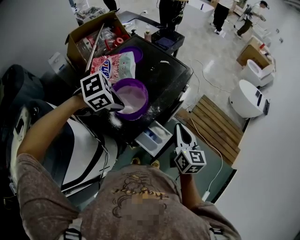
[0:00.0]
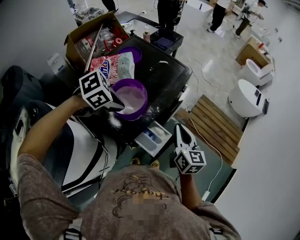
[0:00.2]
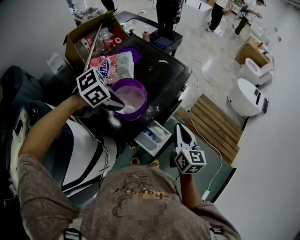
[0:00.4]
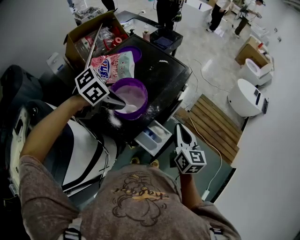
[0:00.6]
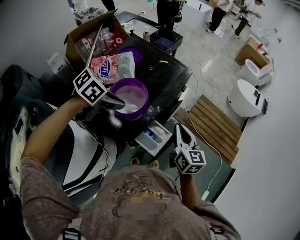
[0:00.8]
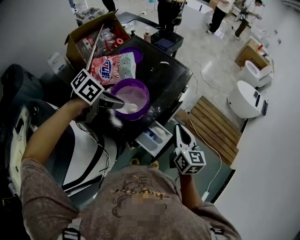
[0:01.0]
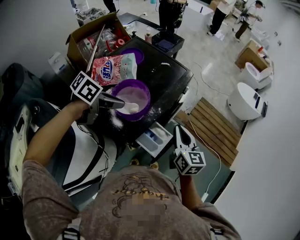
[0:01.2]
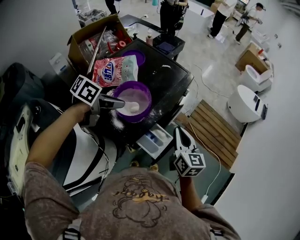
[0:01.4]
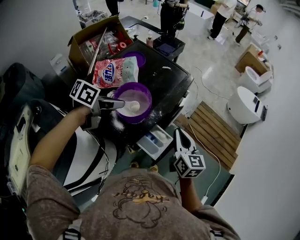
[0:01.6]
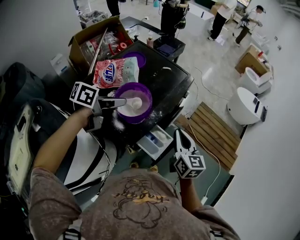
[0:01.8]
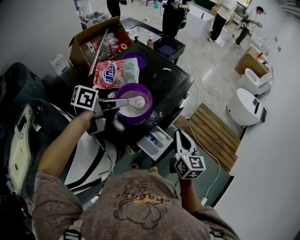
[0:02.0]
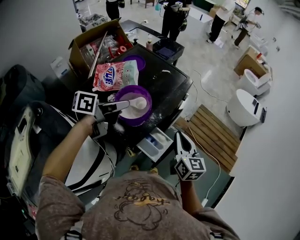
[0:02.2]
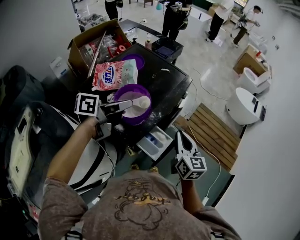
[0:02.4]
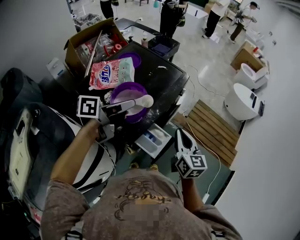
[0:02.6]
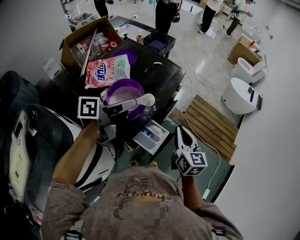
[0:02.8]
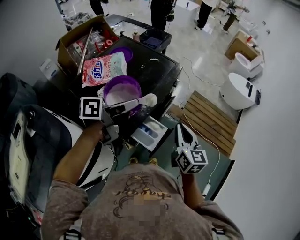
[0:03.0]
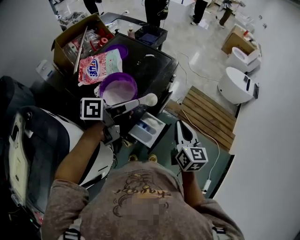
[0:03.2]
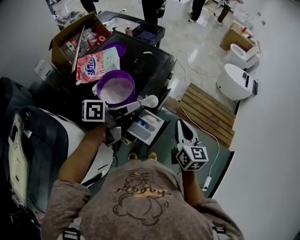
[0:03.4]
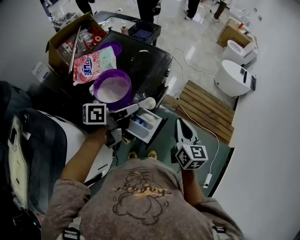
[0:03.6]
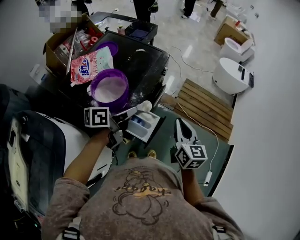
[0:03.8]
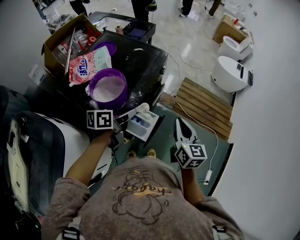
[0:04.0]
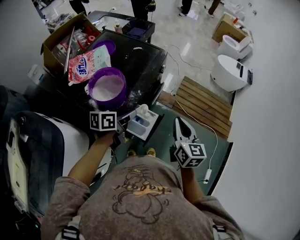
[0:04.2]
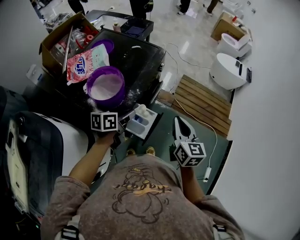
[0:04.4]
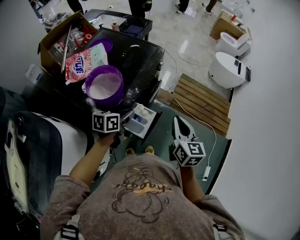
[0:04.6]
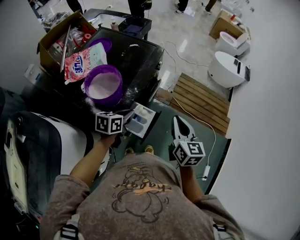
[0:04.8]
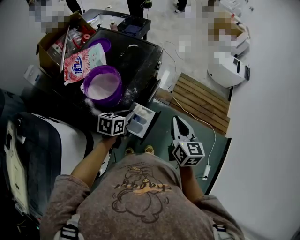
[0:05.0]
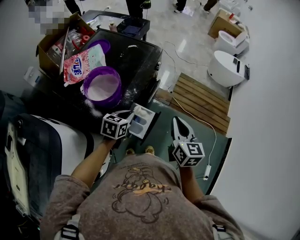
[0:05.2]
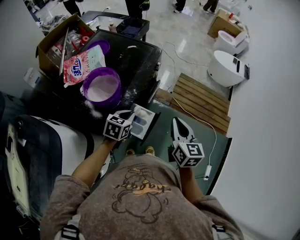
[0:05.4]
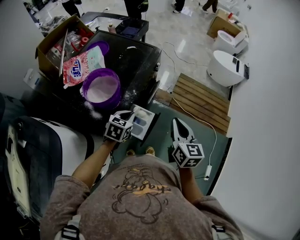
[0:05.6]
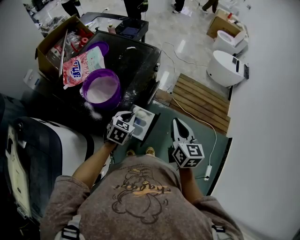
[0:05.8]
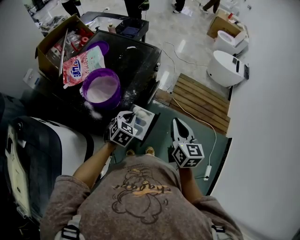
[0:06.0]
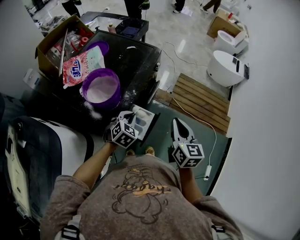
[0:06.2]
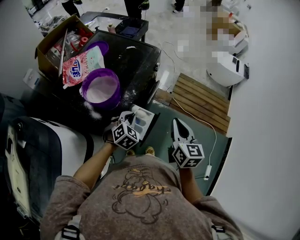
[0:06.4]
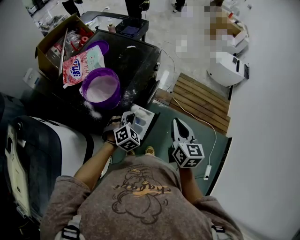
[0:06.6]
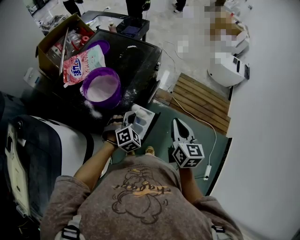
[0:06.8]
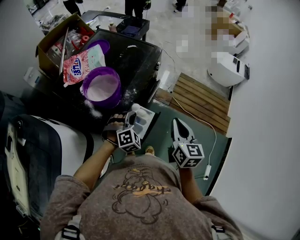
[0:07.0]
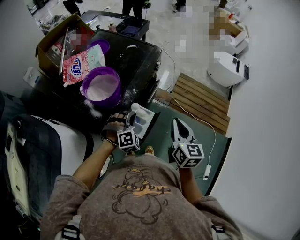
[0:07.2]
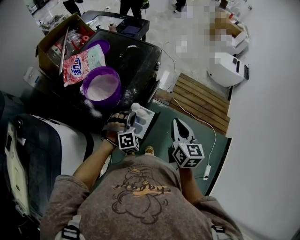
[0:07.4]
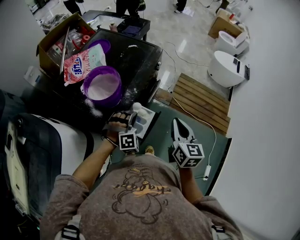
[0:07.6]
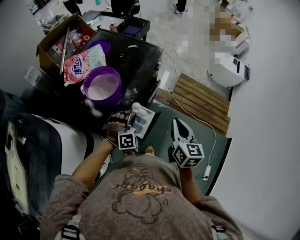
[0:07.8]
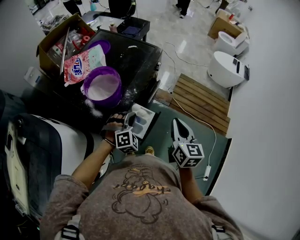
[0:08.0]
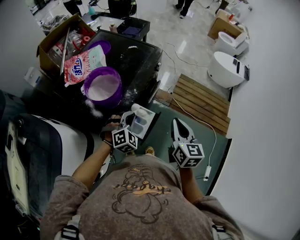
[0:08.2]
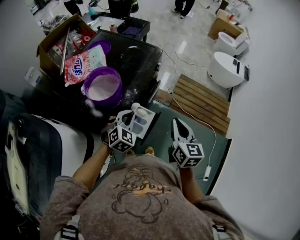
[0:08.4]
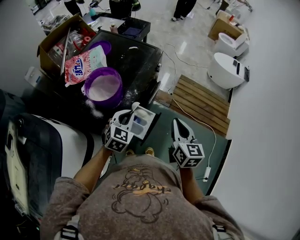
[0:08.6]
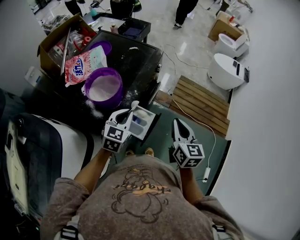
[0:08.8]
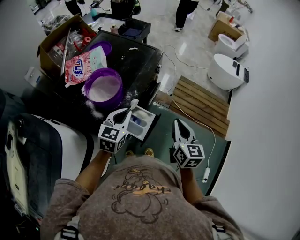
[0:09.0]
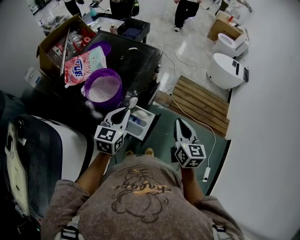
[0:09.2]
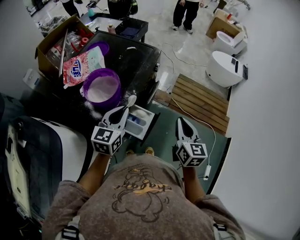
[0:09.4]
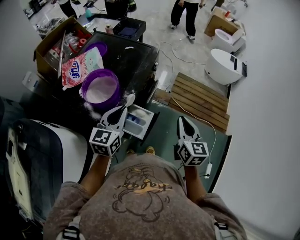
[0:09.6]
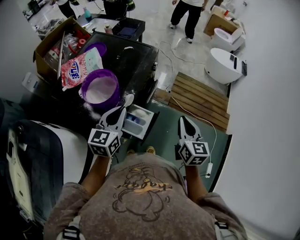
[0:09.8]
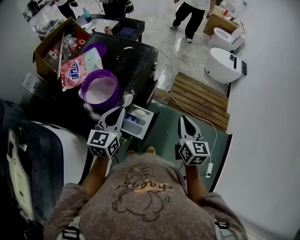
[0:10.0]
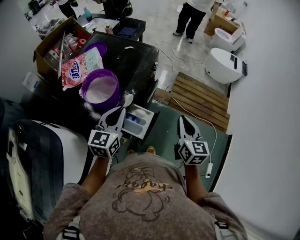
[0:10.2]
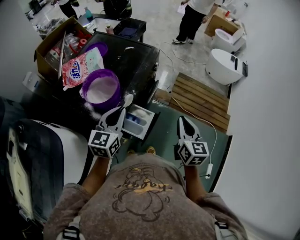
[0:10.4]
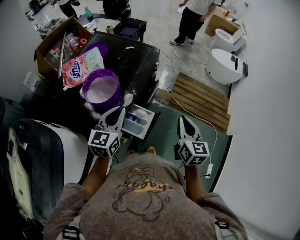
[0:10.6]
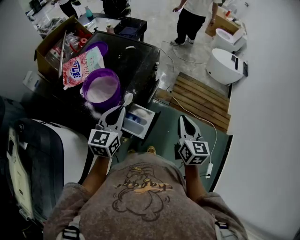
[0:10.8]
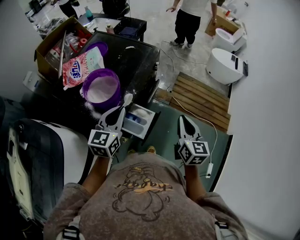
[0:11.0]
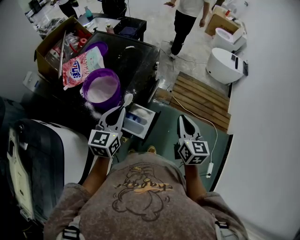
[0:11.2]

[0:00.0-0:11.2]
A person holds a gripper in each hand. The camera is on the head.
0:00.0 to 0:01.6: The left gripper points its fingers some 30 degrees further upward.
0:01.6 to 0:03.2: The right gripper shifts about 5 cm to the right. The left gripper travels to the right by about 10 cm, and turns by some 30 degrees.
0:03.2 to 0:04.8: The left gripper moves downward, approximately 15 cm, and rotates some 40 degrees. Meanwhile the right gripper goes about 5 cm to the right.
0:04.8 to 0:06.4: The left gripper rotates around the line of its fingers by some 50 degrees, clockwise from behind.
0:06.4 to 0:08.0: The left gripper rotates roughly 30 degrees.
0:08.0 to 0:09.6: The left gripper shifts approximately 15 cm upward, and twists about 70 degrees counterclockwise, seen from behind.
0:09.6 to 0:11.2: Both grippers stay about where they are.

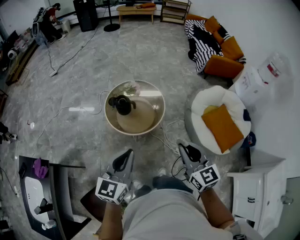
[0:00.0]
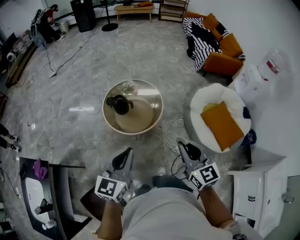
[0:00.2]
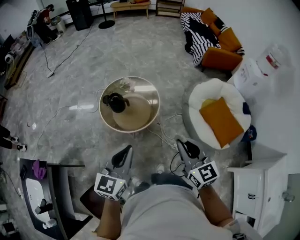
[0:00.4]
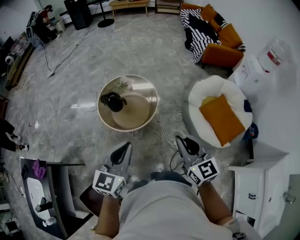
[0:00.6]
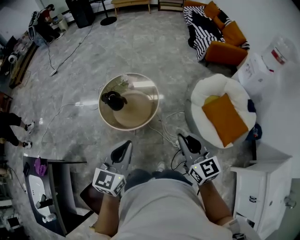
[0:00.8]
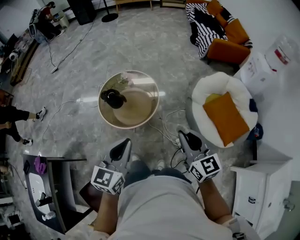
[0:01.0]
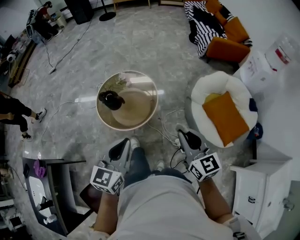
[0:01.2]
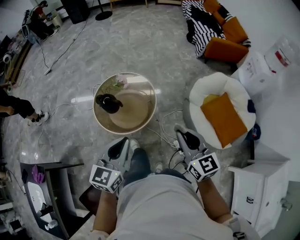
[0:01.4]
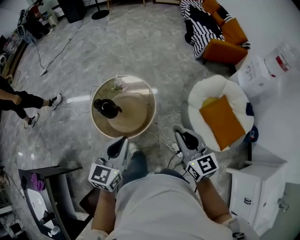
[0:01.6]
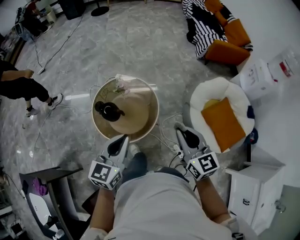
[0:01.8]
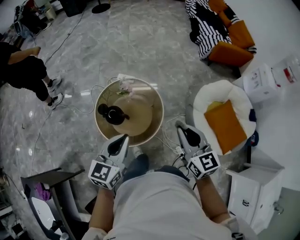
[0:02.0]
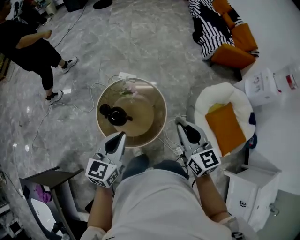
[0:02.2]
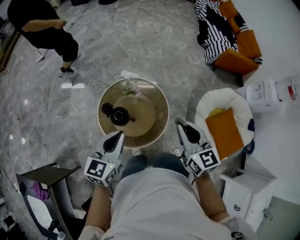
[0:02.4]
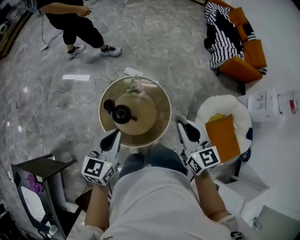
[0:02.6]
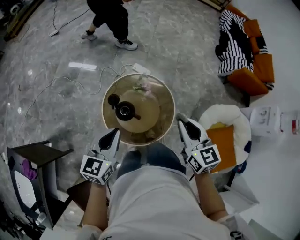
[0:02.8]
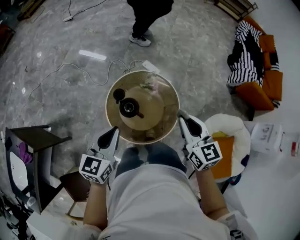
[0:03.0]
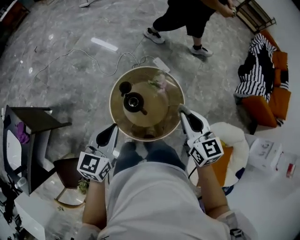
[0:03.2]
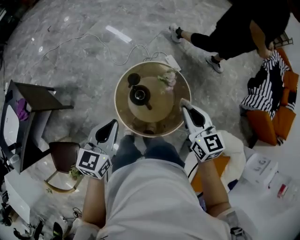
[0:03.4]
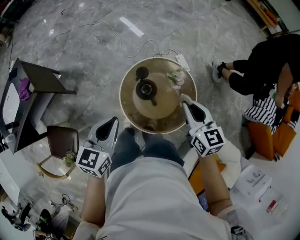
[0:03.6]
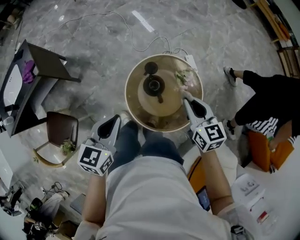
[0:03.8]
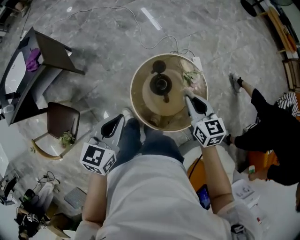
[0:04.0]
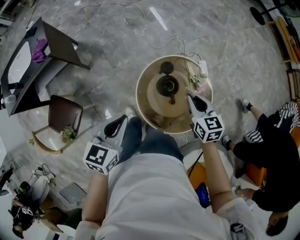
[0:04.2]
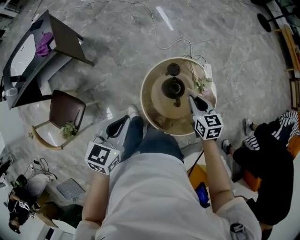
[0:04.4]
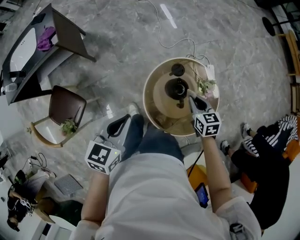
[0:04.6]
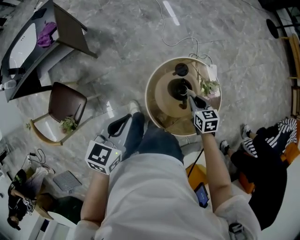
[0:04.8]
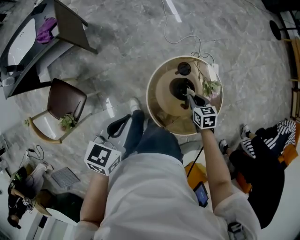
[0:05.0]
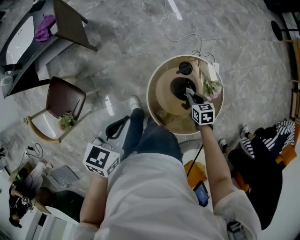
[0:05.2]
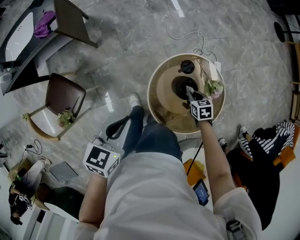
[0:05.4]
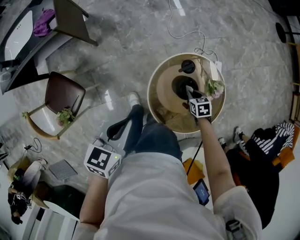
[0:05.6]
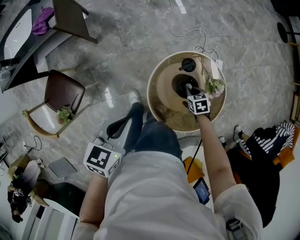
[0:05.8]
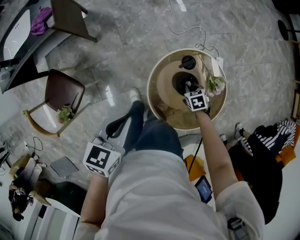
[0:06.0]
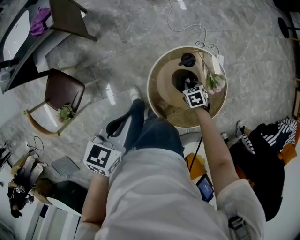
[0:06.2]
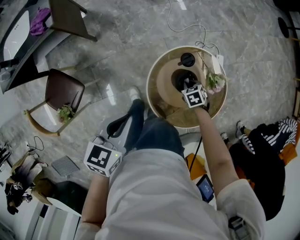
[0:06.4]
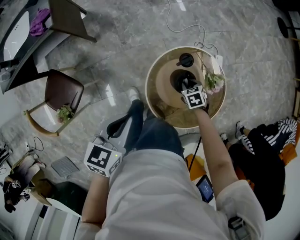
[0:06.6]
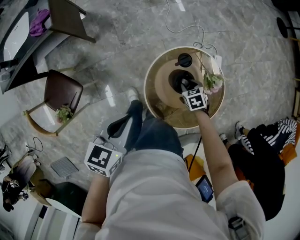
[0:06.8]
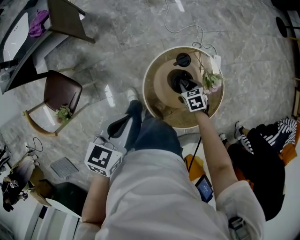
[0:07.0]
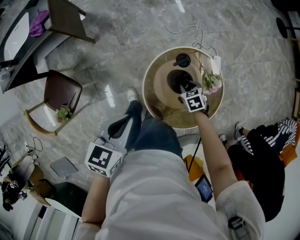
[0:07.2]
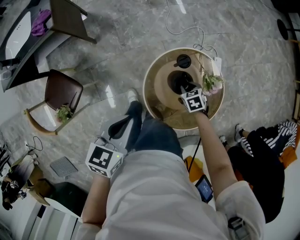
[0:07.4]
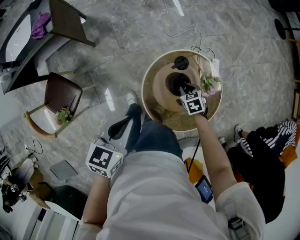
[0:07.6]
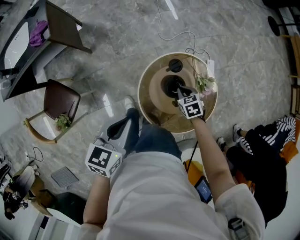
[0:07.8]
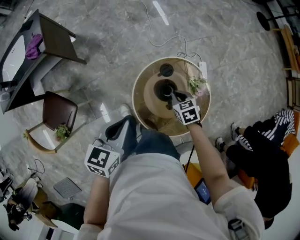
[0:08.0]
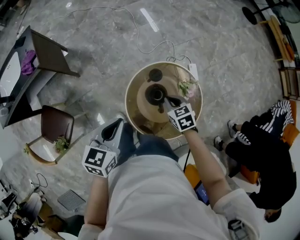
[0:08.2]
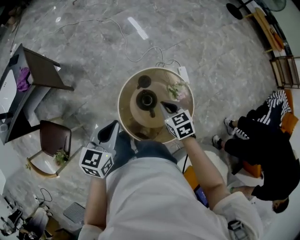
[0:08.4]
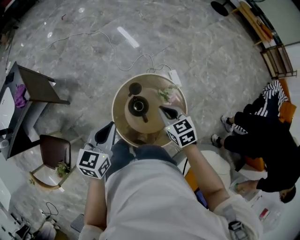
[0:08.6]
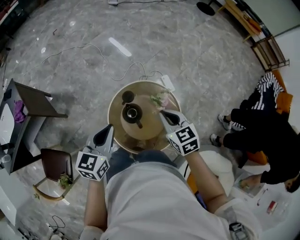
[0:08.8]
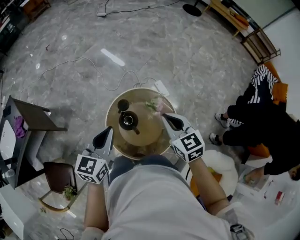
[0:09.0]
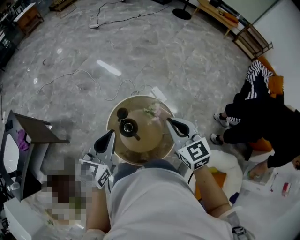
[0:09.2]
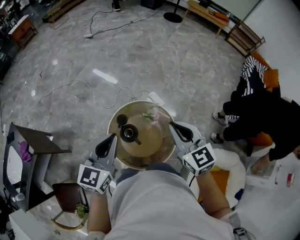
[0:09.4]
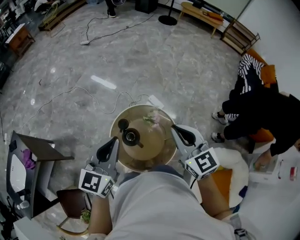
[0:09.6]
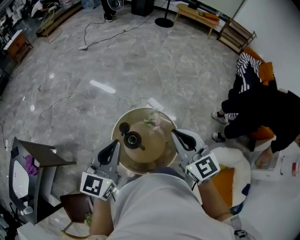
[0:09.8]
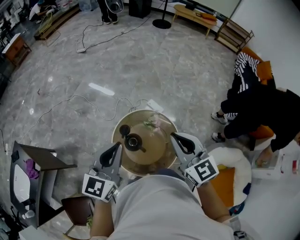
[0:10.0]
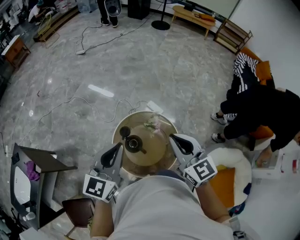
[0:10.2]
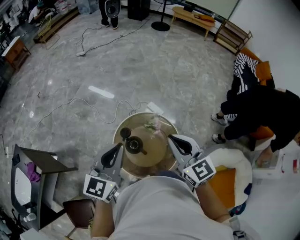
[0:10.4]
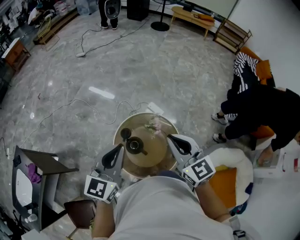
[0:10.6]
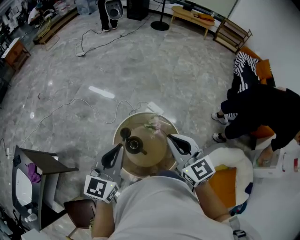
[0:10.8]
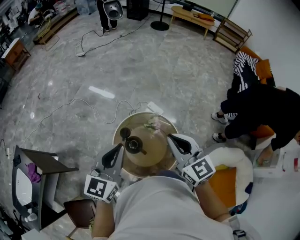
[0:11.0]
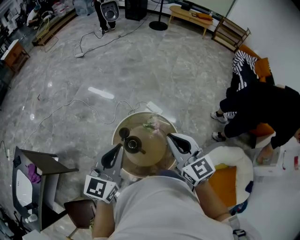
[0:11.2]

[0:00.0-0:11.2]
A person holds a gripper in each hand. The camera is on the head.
0:00.0 to 0:01.6: Both grippers travel together forward and to the right, about 25 cm.
0:01.6 to 0:03.2: The left gripper moves roughly 30 cm, and turns by some 40 degrees. The right gripper moves some 40 cm, and swivels about 30 degrees.
0:03.2 to 0:04.8: The right gripper travels downward by approximately 25 cm, and swivels about 50 degrees. The left gripper shifts by roughly 20 cm, and rotates roughly 30 degrees.
0:04.8 to 0:06.4: The right gripper moves downward, approximately 15 cm, and changes its angle by approximately 30 degrees.
0:06.4 to 0:08.0: The right gripper shifts approximately 10 cm upward, and opens, then closes once more. The left gripper changes place by some 5 cm.
0:08.0 to 0:09.6: The right gripper is displaced upward by roughly 40 cm, and tilts its fingers roughly 40 degrees upward; the left gripper heads upward, covering approximately 20 cm, and rotates approximately 40 degrees.
0:09.6 to 0:11.2: There are only small adjustments of the grippers.

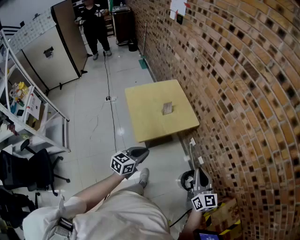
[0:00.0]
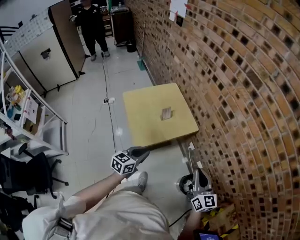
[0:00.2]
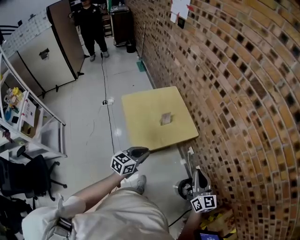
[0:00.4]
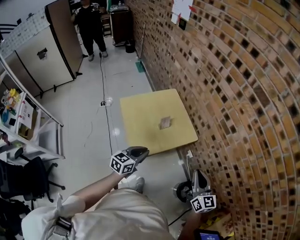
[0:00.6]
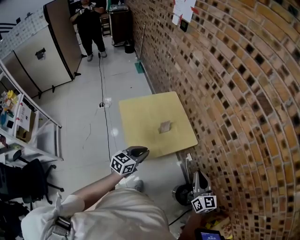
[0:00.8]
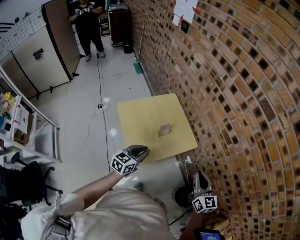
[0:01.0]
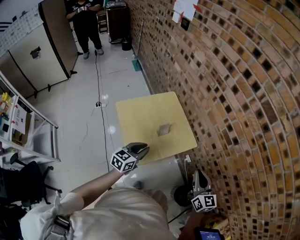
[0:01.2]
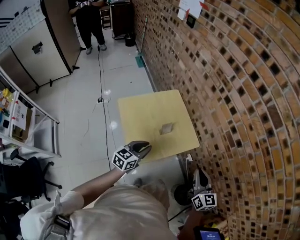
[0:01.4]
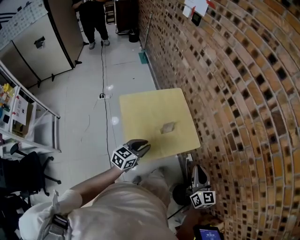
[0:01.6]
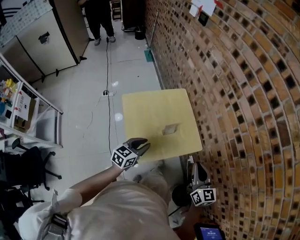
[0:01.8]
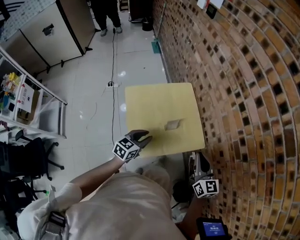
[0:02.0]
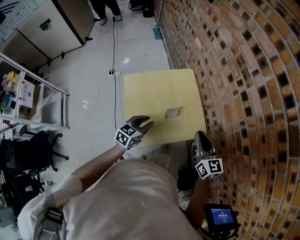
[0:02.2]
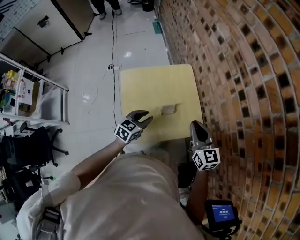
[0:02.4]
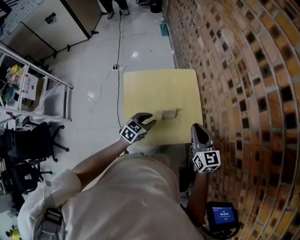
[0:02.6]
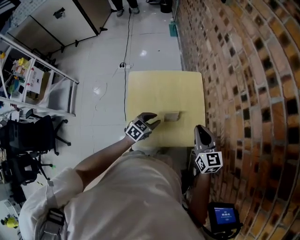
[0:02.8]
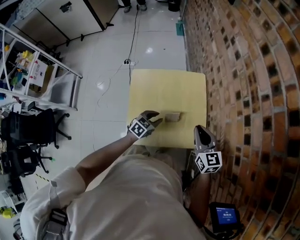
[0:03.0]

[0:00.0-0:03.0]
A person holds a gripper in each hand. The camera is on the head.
0:00.0 to 0:01.6: The two grippers go roughly 25 cm forward and to the left.
0:01.6 to 0:03.0: The left gripper is displaced forward and downward by some 20 cm, and changes its angle by roughly 20 degrees. Meanwhile the right gripper moves forward, about 25 cm, and turns by about 30 degrees.
